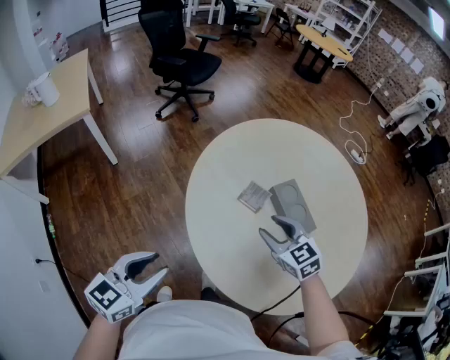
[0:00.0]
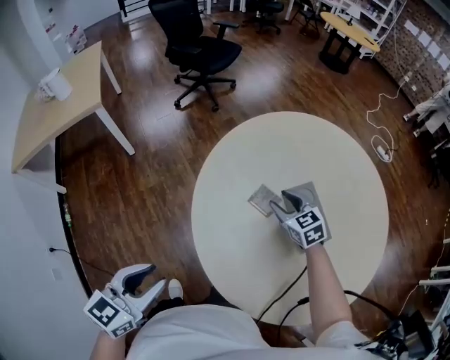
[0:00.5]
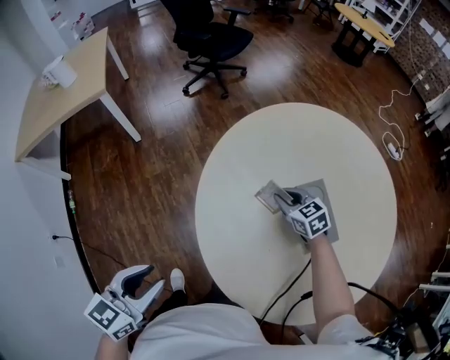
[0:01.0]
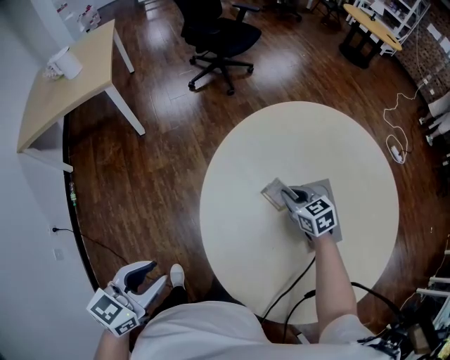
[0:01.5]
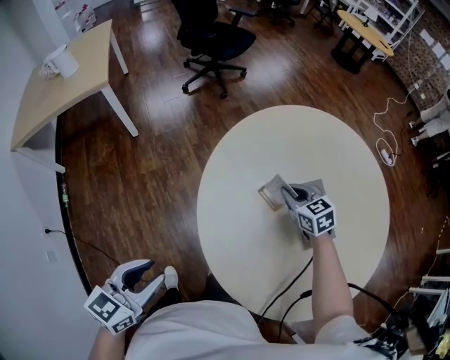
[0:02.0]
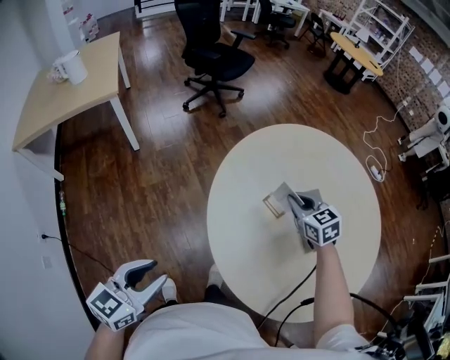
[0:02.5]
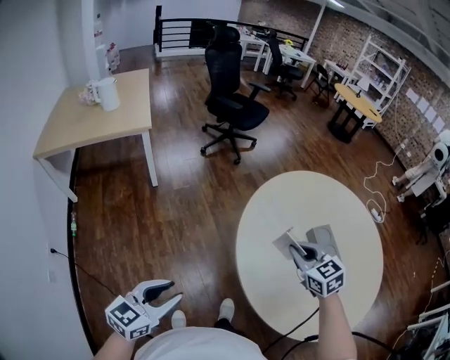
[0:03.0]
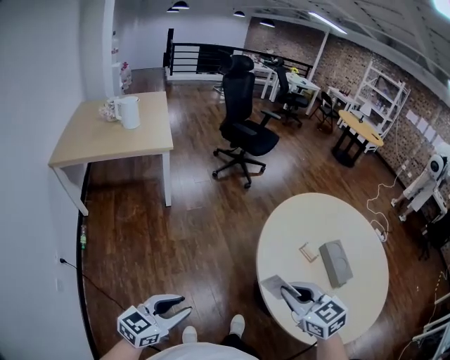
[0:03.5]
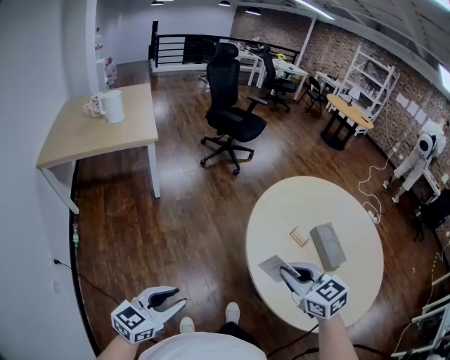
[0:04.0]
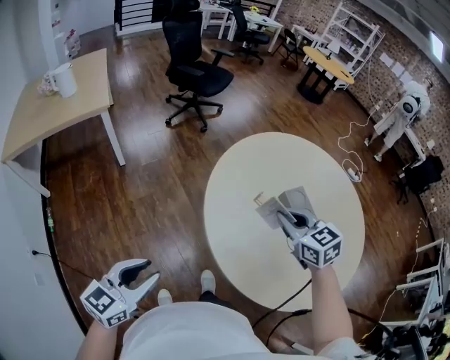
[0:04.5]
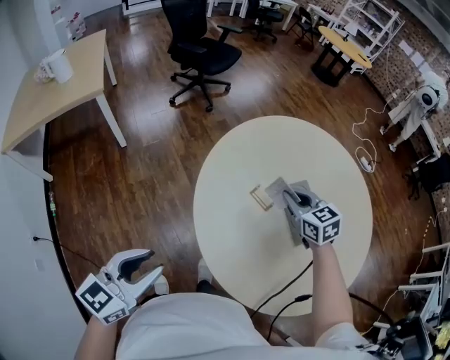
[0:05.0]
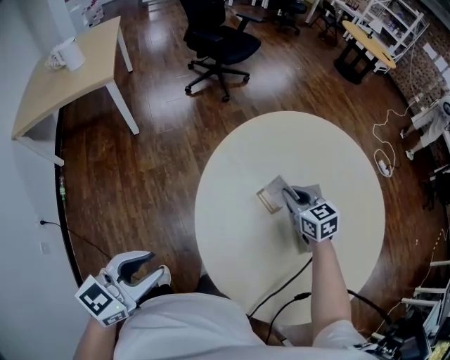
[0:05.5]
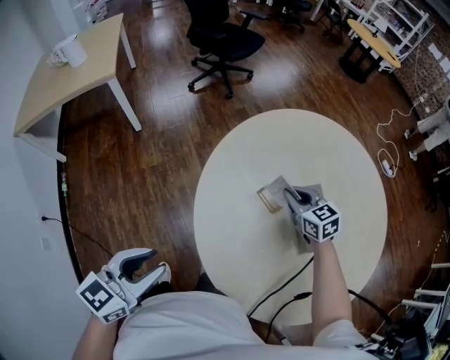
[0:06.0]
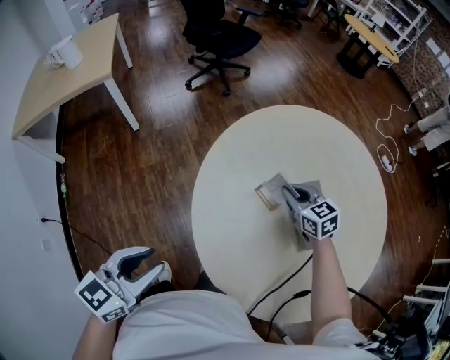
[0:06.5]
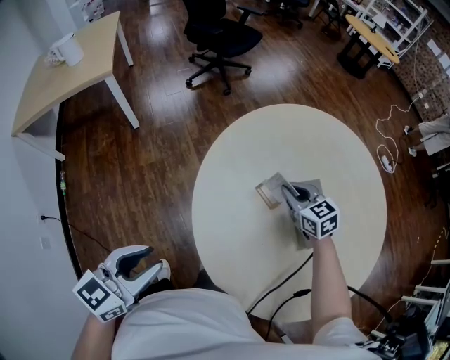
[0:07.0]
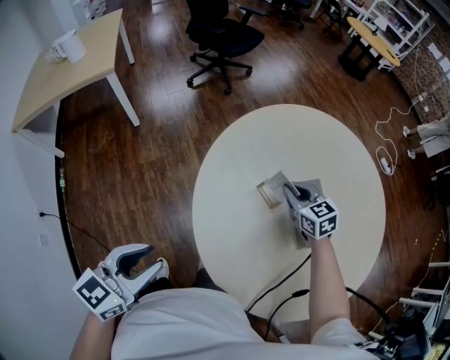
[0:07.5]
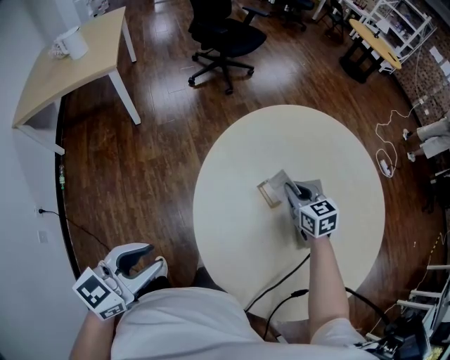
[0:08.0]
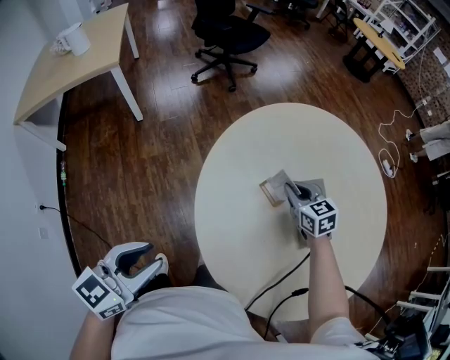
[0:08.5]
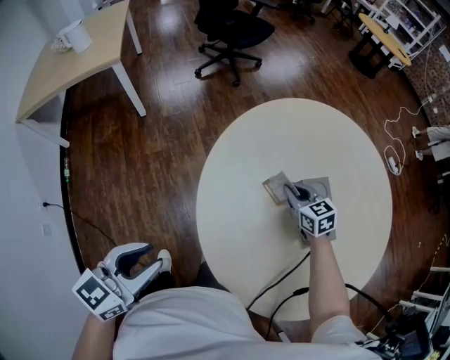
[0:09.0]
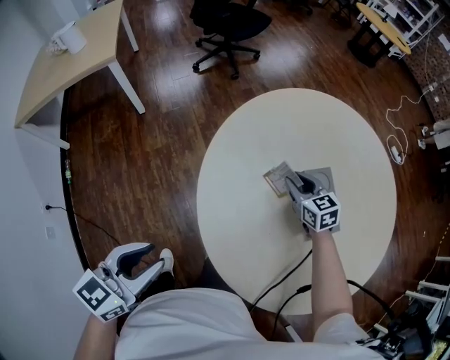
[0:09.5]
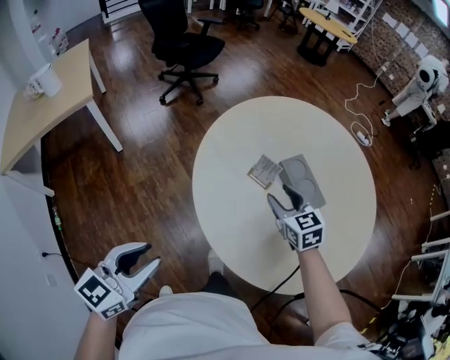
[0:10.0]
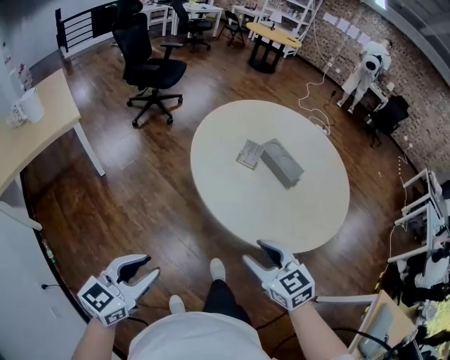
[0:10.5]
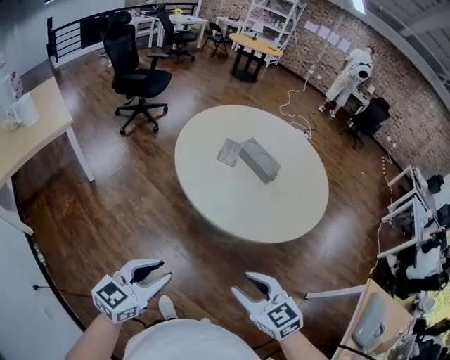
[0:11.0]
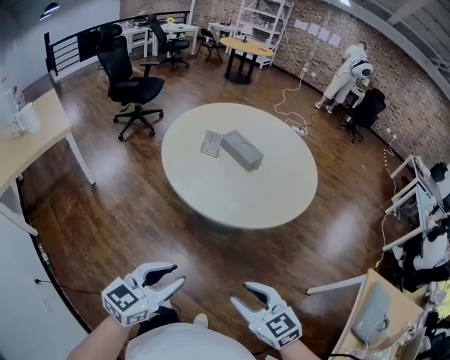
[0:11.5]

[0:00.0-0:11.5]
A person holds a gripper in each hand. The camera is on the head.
0:00.0 to 0:02.0: The right gripper is displaced forward and downward by approximately 15 cm, and closes.
0:02.0 to 0:04.0: The left gripper heads to the left and backward, covering approximately 20 cm; the right gripper shifts approximately 40 cm backward, to the left and upward.
0:04.0 to 0:06.0: The left gripper travels to the right and forward by approximately 25 cm. Meanwhile the right gripper travels forward, to the right and downward by approximately 40 cm.
0:06.0 to 0:07.5: Both grippers stay put.
0:07.5 to 0:09.5: The grippers stay close to where they were, moving slightly.
0:09.5 to 0:11.5: The right gripper shifts by some 70 cm, while the left gripper shifts by about 35 cm, and rotates approximately 40 degrees.

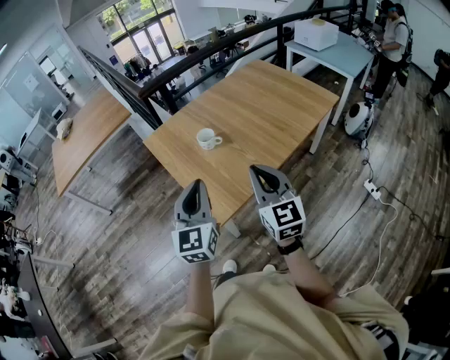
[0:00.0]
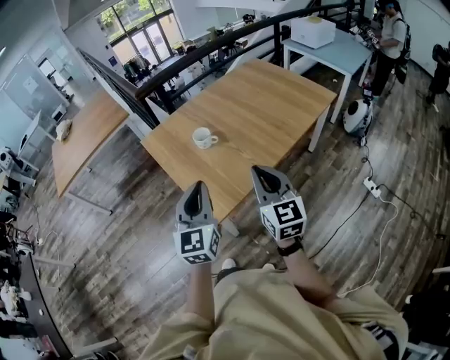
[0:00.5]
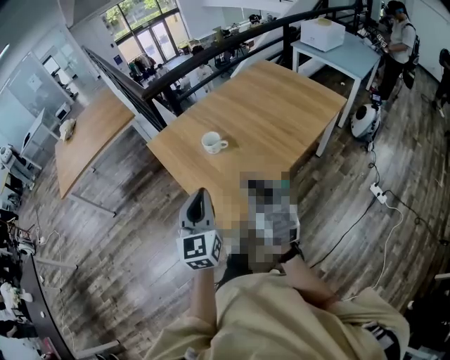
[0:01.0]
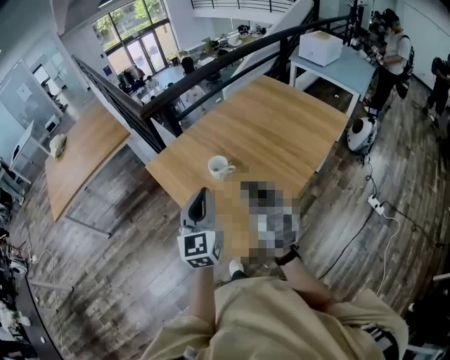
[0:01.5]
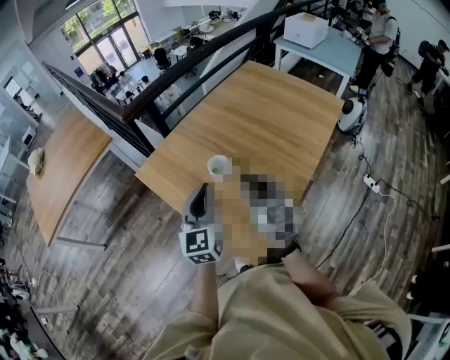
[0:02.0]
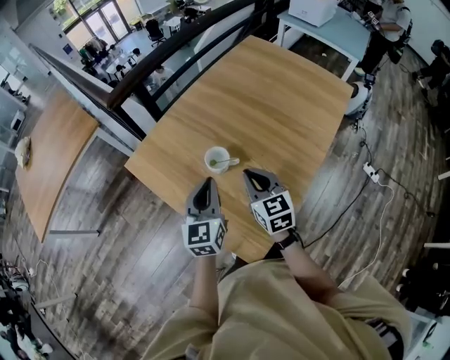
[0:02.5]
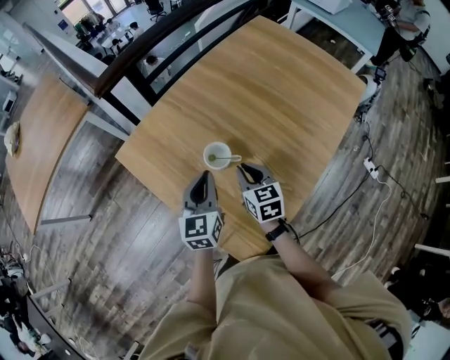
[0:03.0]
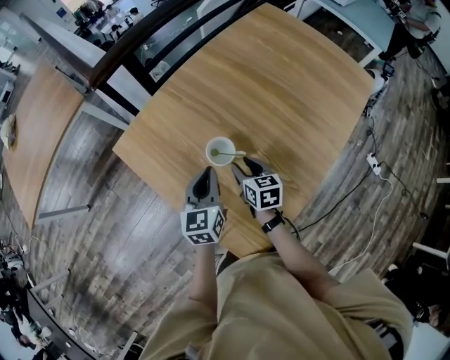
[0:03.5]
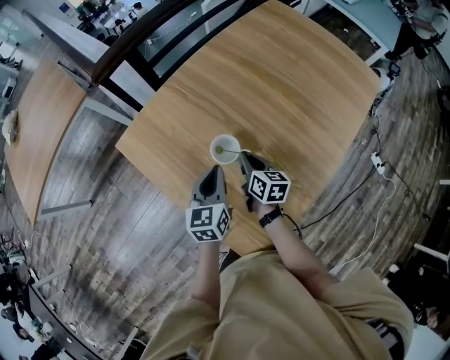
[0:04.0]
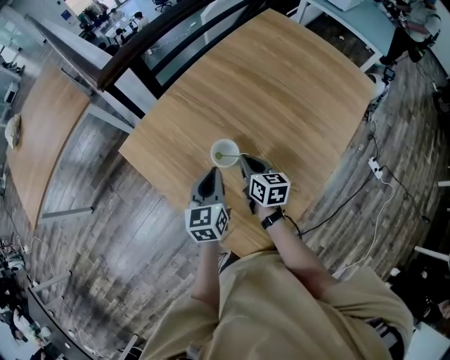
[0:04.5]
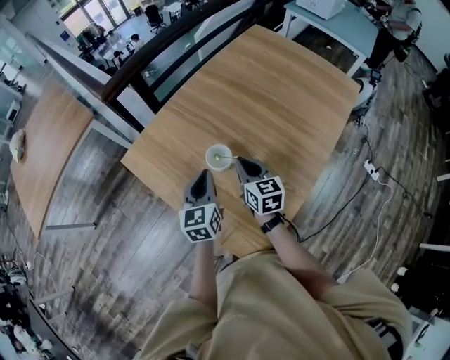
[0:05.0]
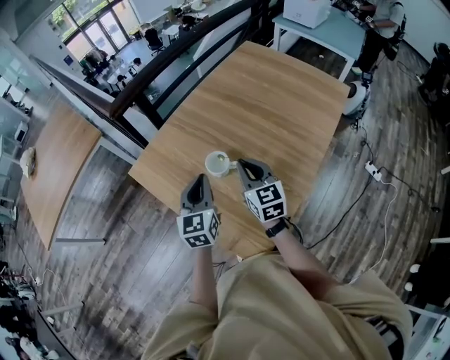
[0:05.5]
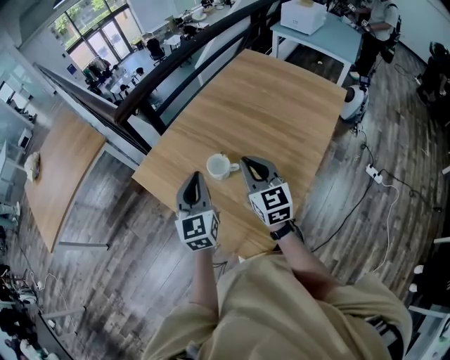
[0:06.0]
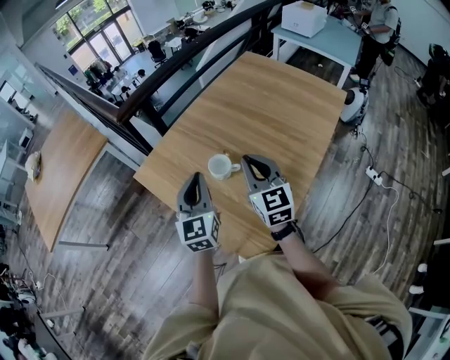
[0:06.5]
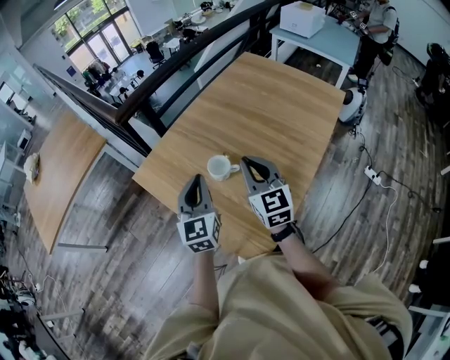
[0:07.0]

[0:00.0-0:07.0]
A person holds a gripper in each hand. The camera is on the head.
0:00.0 to 0:02.0: The left gripper travels forward by some 25 cm; the right gripper heads forward and to the left, covering about 25 cm.
0:02.0 to 0:03.5: The two grippers go roughly 25 cm downward and forward. The right gripper turns by approximately 40 degrees, and opens; the left gripper rotates roughly 20 degrees.
0:03.5 to 0:05.0: The right gripper heads upward, covering roughly 10 cm, and closes its fingers.
0:05.0 to 0:07.0: The grippers both shift upward and backward by about 15 cm. The right gripper swivels roughly 20 degrees.

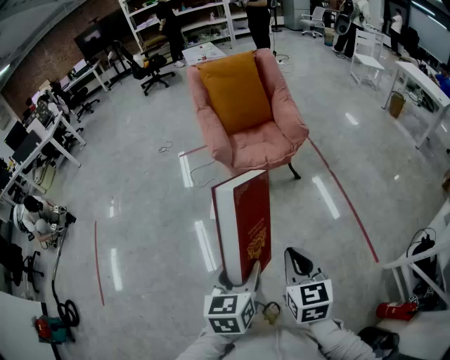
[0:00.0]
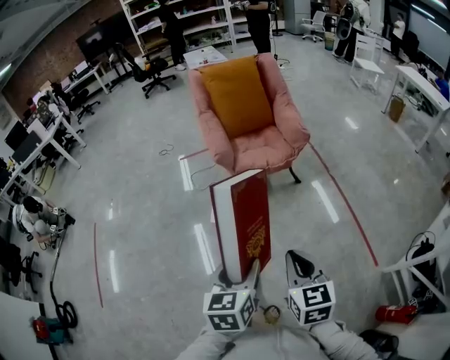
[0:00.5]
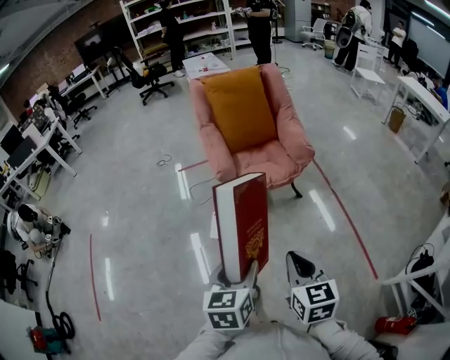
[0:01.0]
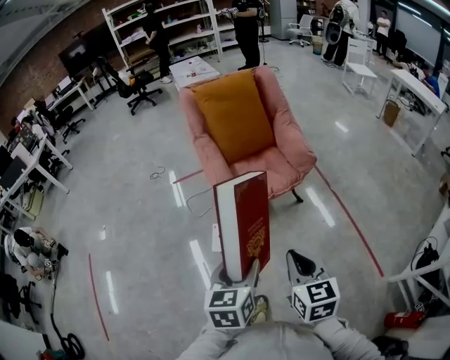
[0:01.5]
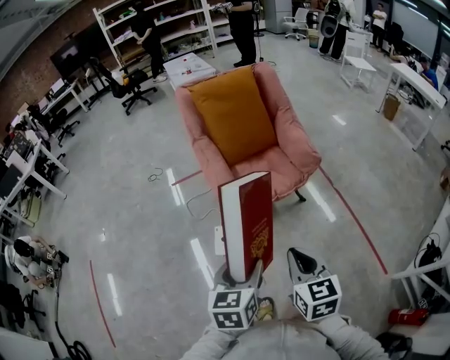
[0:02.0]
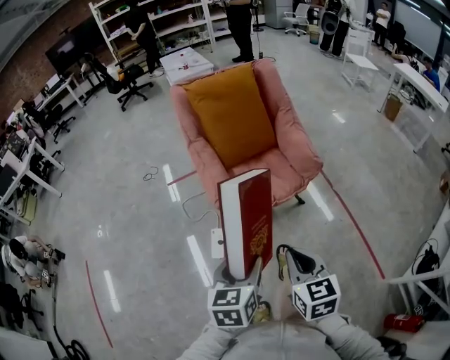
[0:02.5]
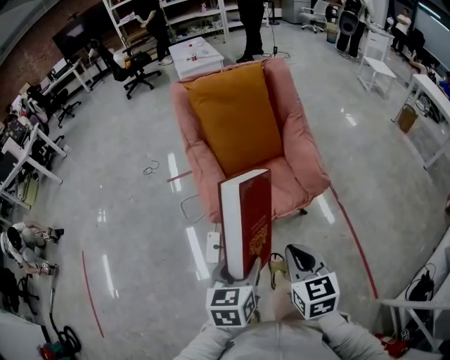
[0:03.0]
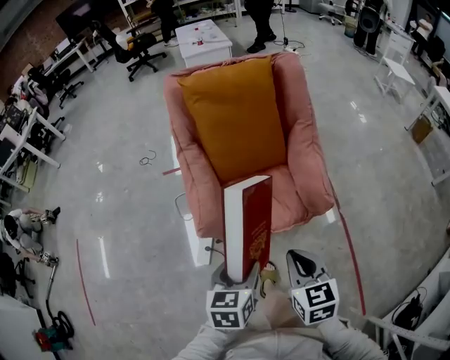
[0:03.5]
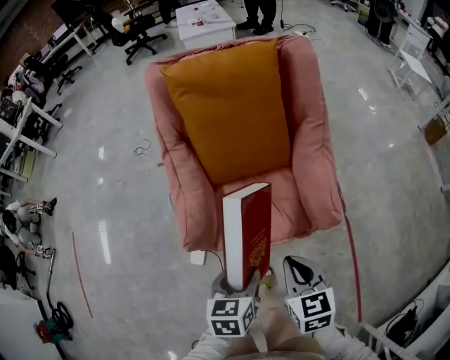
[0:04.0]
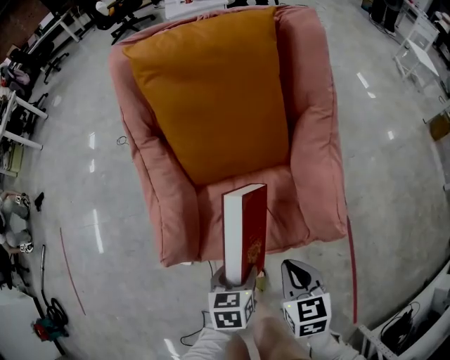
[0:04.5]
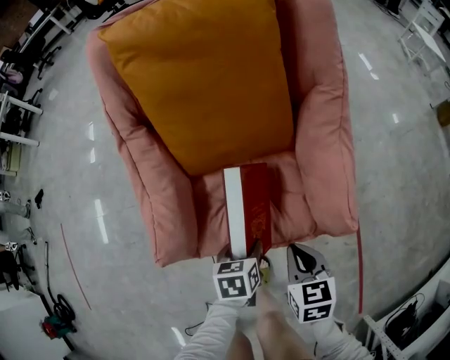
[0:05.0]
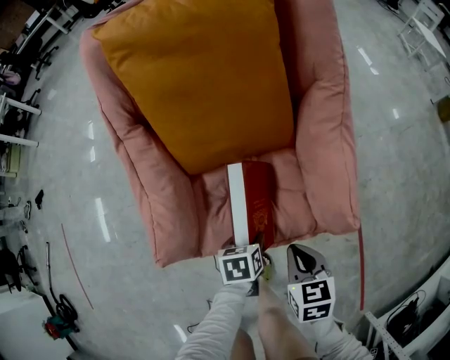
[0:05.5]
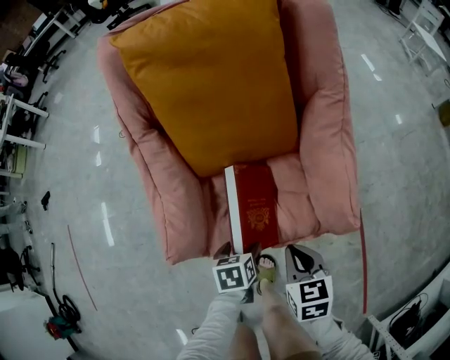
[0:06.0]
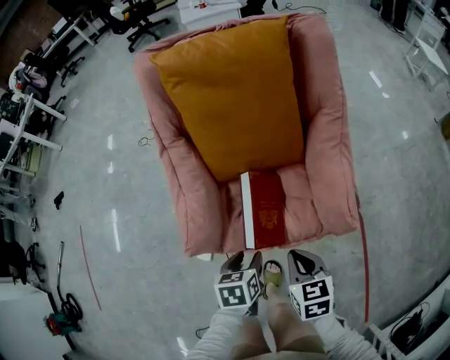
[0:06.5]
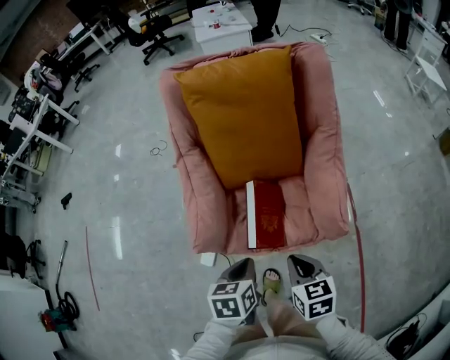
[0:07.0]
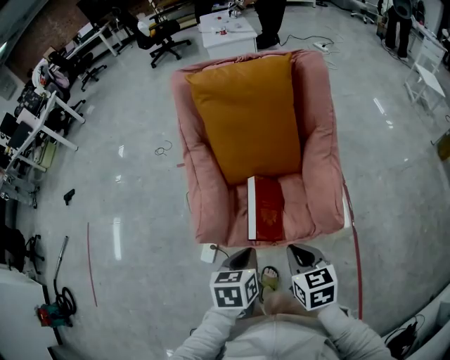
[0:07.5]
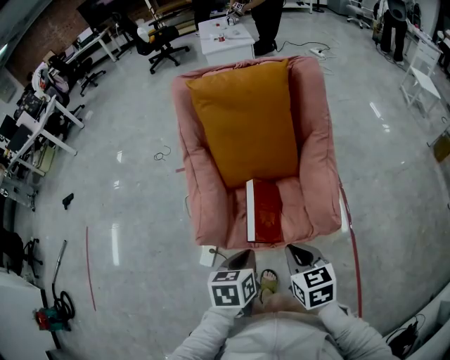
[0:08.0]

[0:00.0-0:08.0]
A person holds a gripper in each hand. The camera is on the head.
0:00.0 to 0:02.0: Both grippers travel together forward, roughly 25 cm.
0:02.0 to 0:04.0: The right gripper moves forward, approximately 35 cm, and changes its angle by some 20 degrees; the left gripper moves forward and downward, approximately 35 cm, and swivels approximately 20 degrees.
0:04.0 to 0:06.0: The two grippers go approximately 20 cm downward and forward. The left gripper turns by some 20 degrees.
0:06.0 to 0:08.0: The left gripper shifts approximately 25 cm upward, and closes up. Meanwhile the right gripper is displaced upward by approximately 15 cm.
